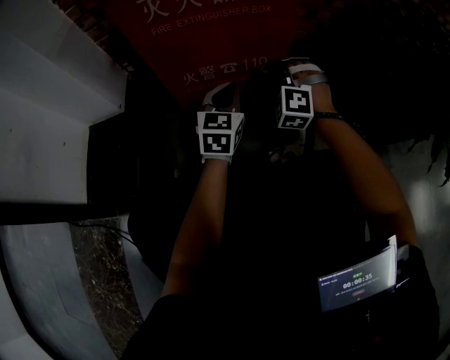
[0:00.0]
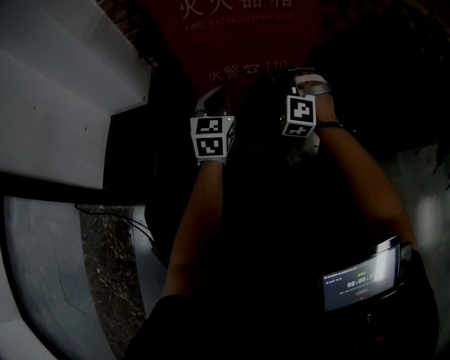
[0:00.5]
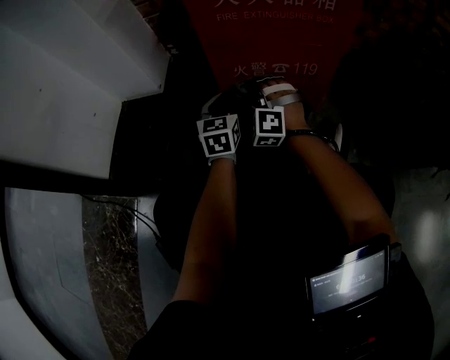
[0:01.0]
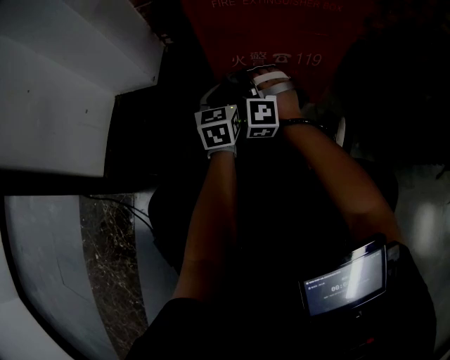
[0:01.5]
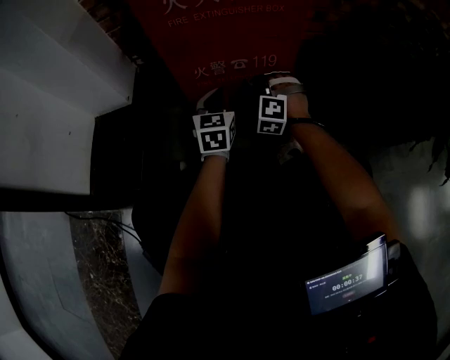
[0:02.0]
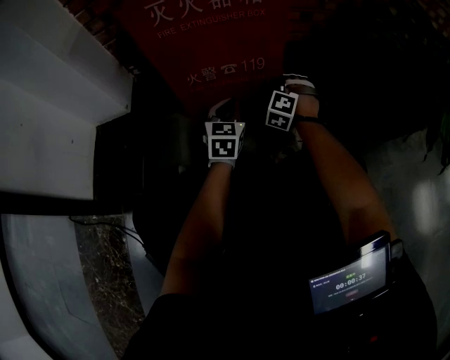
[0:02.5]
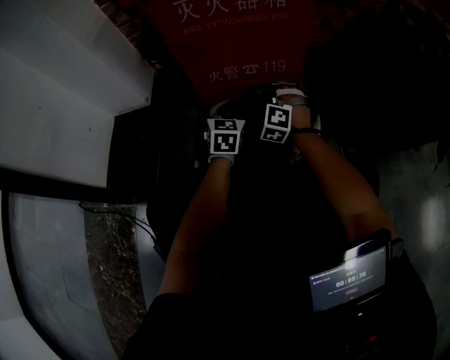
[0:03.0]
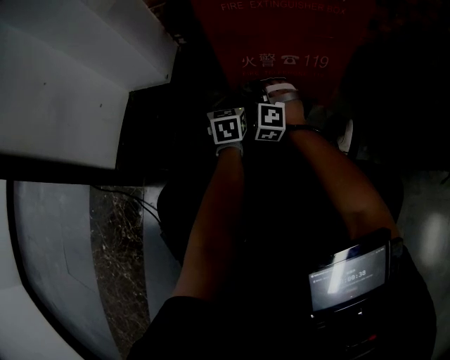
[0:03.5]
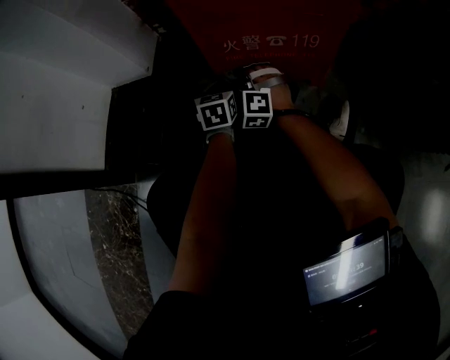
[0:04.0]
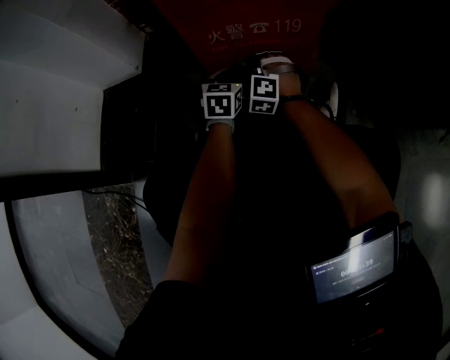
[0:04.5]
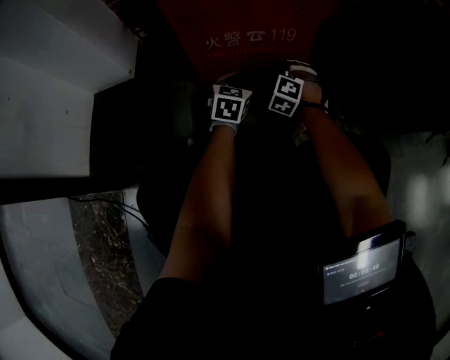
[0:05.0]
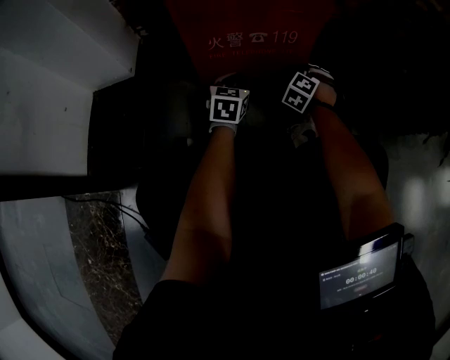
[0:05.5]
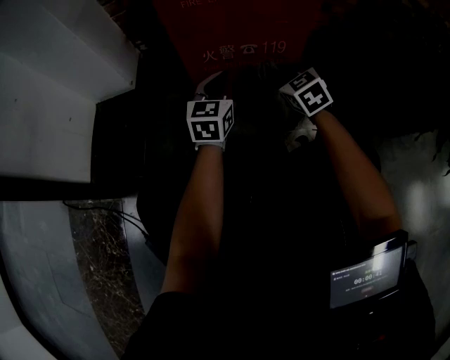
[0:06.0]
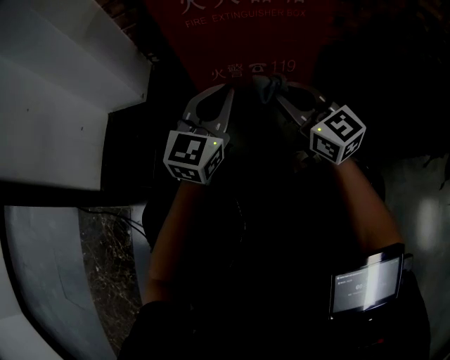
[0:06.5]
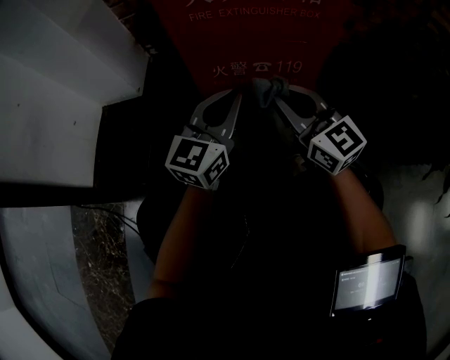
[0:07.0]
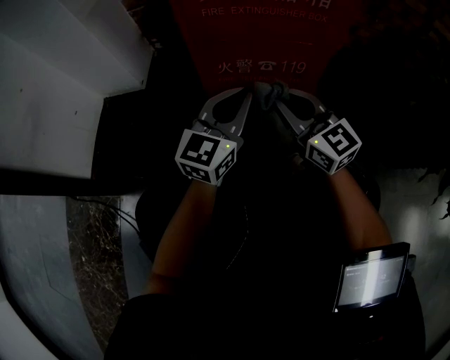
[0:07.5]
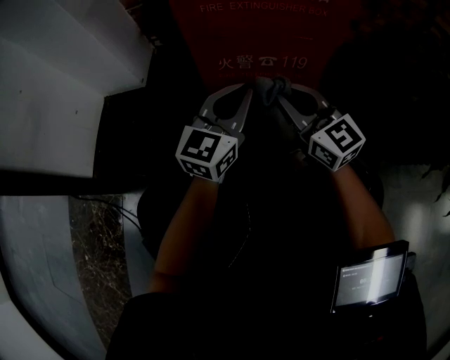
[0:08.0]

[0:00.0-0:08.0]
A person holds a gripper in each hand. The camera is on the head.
0:02.0 to 0:04.0: The left gripper changes place by roughly 15 cm.
0:04.0 to 0:06.0: The left gripper travels upward by roughly 15 cm, and rotates roughly 30 degrees.
0:06.0 to 0:08.0: The left gripper moves upward, about 10 cm.

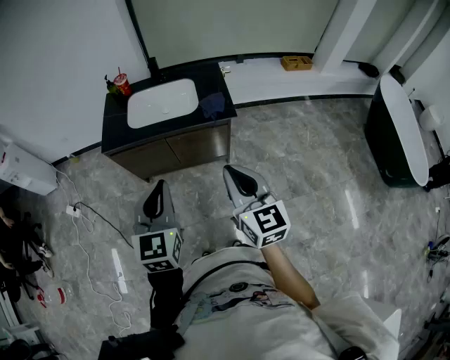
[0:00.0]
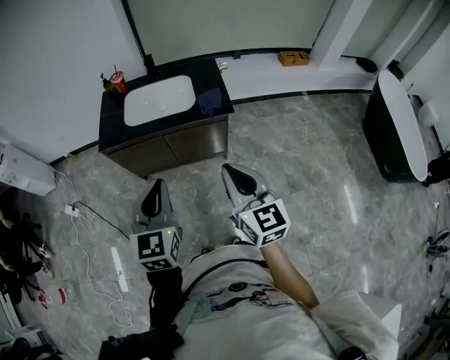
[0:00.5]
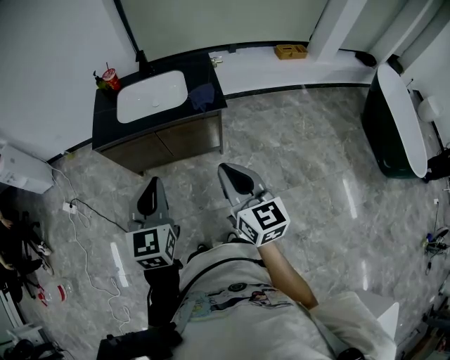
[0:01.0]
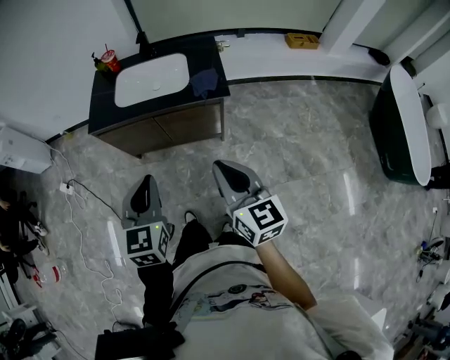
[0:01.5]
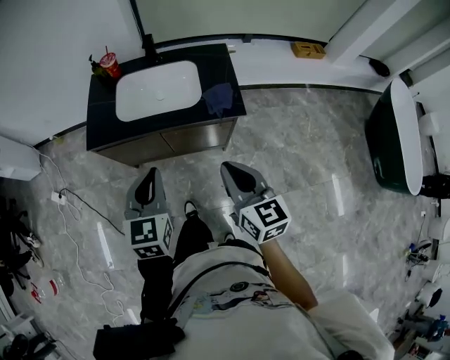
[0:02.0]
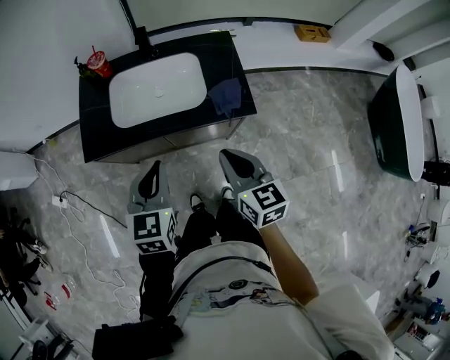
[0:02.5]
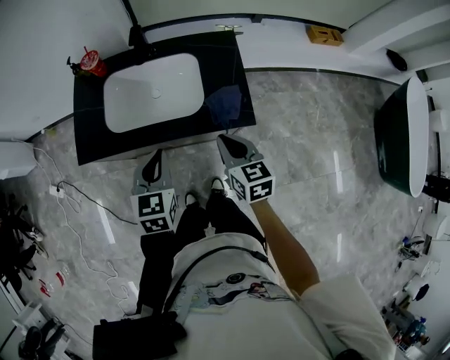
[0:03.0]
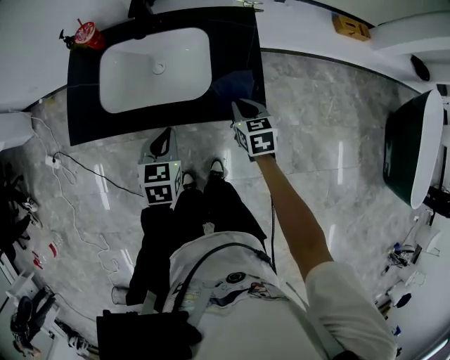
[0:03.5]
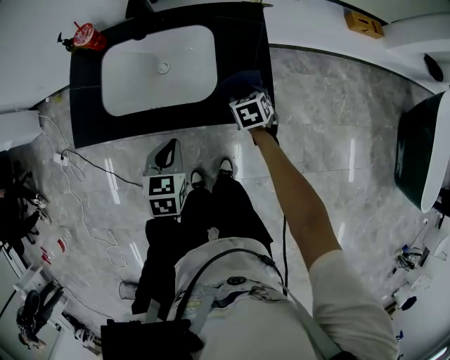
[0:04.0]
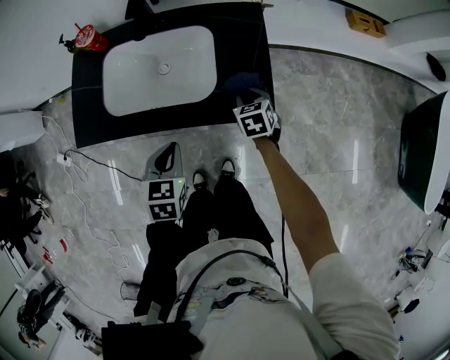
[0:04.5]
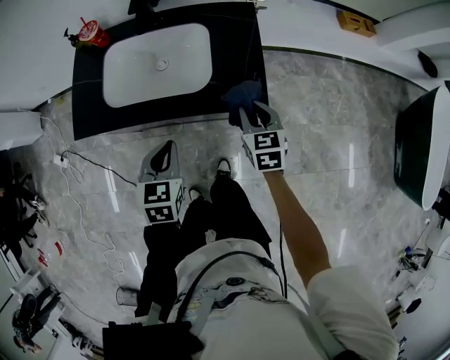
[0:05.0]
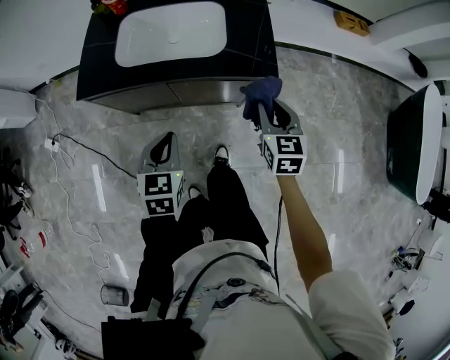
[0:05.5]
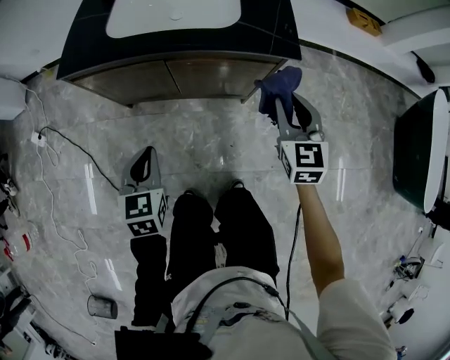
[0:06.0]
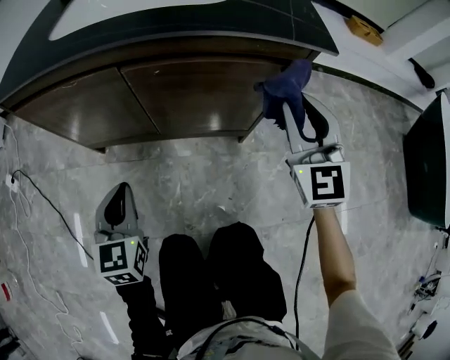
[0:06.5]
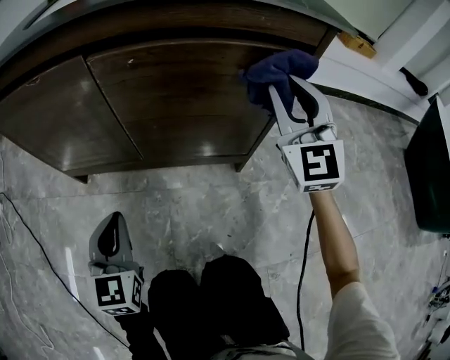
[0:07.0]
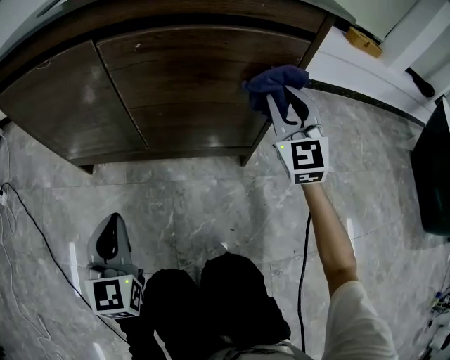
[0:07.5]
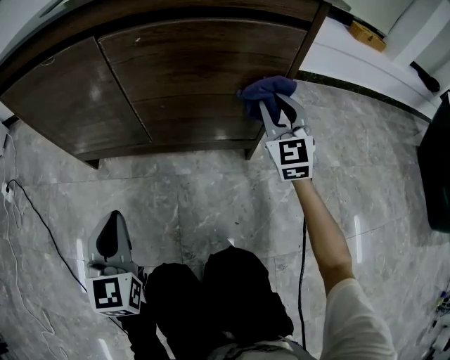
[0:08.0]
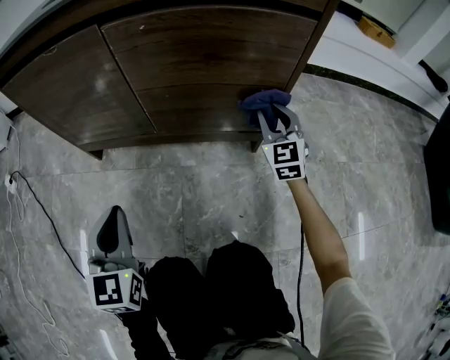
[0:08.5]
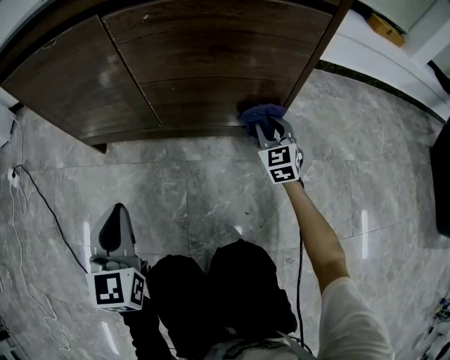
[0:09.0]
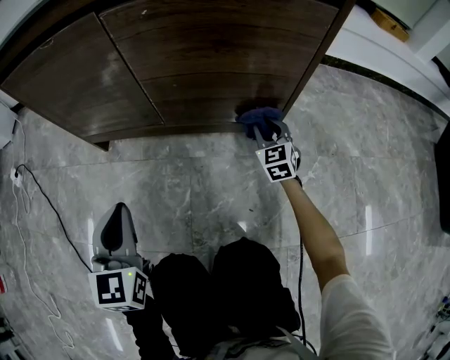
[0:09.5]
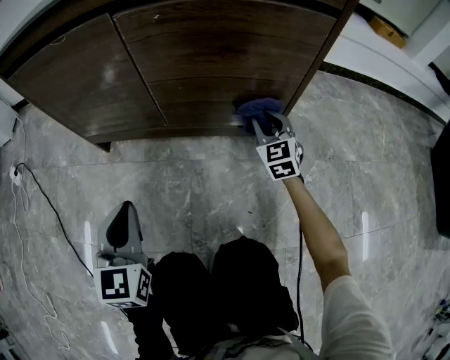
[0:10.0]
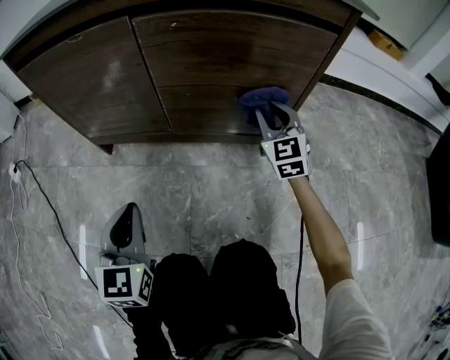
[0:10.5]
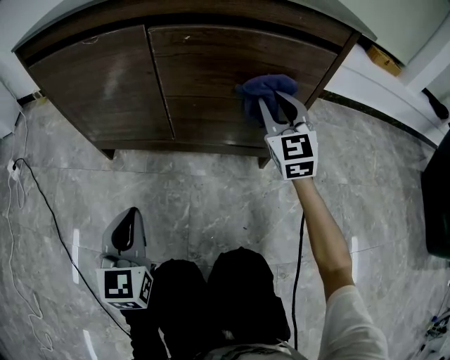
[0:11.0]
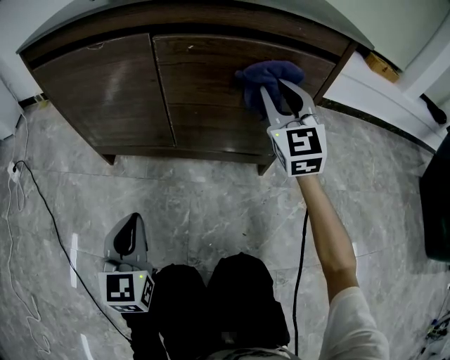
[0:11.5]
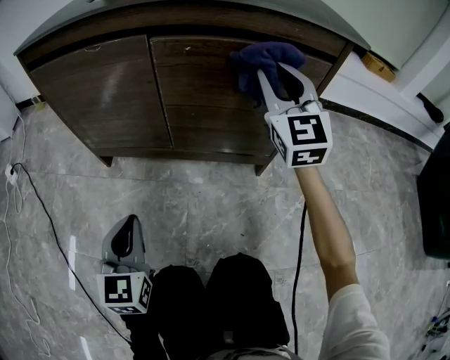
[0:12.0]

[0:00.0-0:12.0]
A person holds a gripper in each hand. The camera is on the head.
0:00.0 to 0:02.0: The two grippers go about 15 cm forward and downward.
0:02.0 to 0:04.0: The left gripper travels downward and forward by roughly 30 cm, and changes its angle by some 30 degrees, while the right gripper moves downward and forward, roughly 50 cm, points its fingers approximately 40 degrees further downward, and opens up.
0:04.0 to 0:06.0: The left gripper moves backward and to the left, approximately 25 cm. Meanwhile the right gripper moves backward and upward, roughly 25 cm, tilts its fingers some 40 degrees upward, and closes up.
0:06.0 to 0:08.0: Both grippers move downward, about 30 cm. The left gripper changes its angle by some 20 degrees. Meanwhile the right gripper changes its angle by about 20 degrees.
0:08.0 to 0:10.0: The right gripper is displaced downward by some 15 cm.
0:10.0 to 0:12.0: The right gripper is displaced upward by about 30 cm, and turns by about 30 degrees.

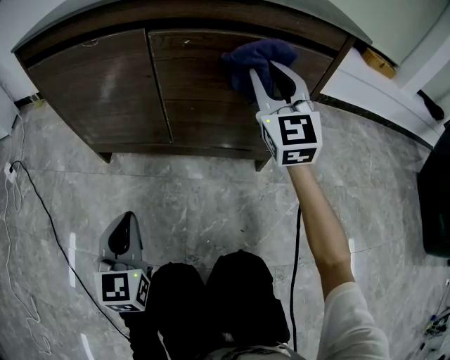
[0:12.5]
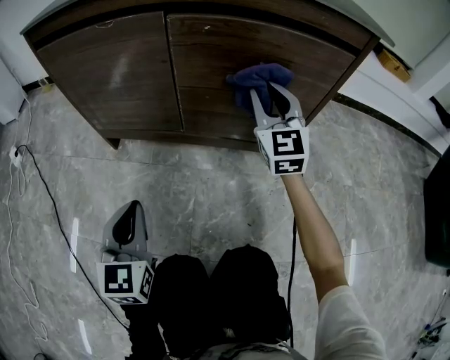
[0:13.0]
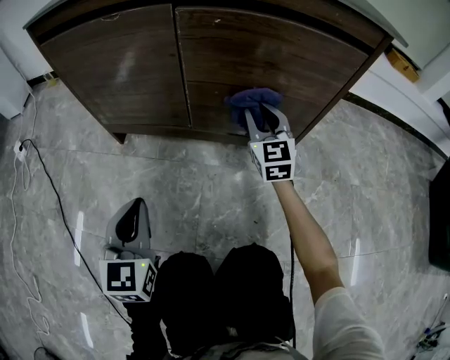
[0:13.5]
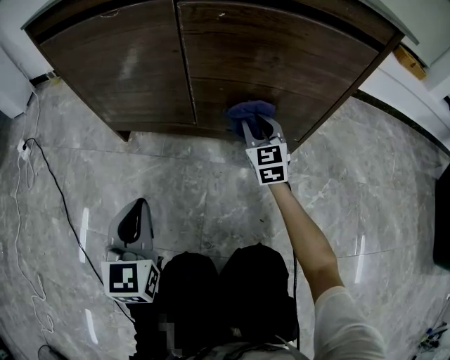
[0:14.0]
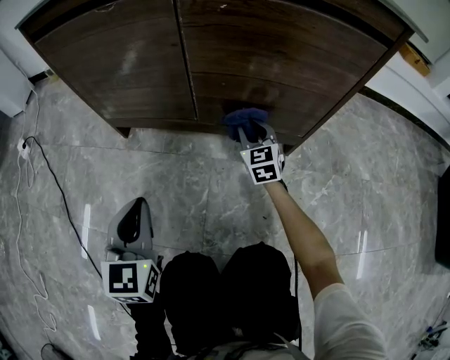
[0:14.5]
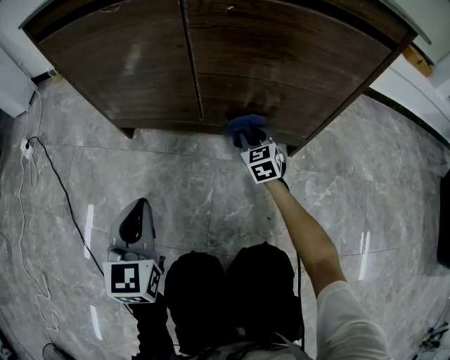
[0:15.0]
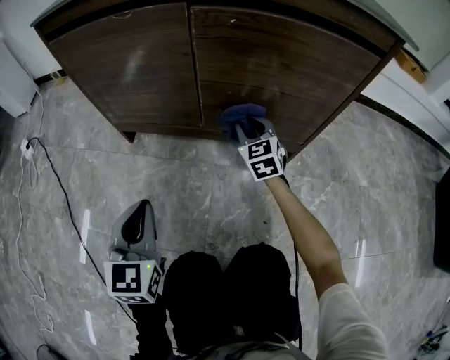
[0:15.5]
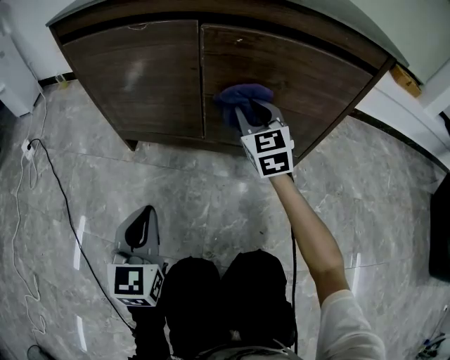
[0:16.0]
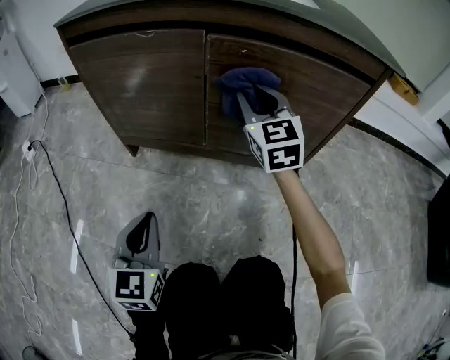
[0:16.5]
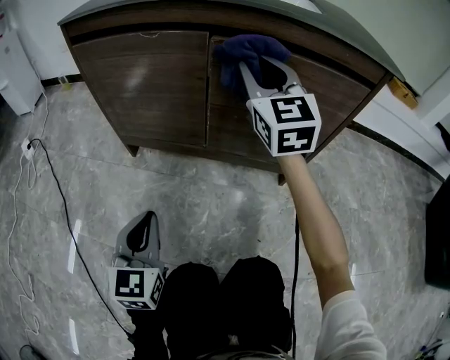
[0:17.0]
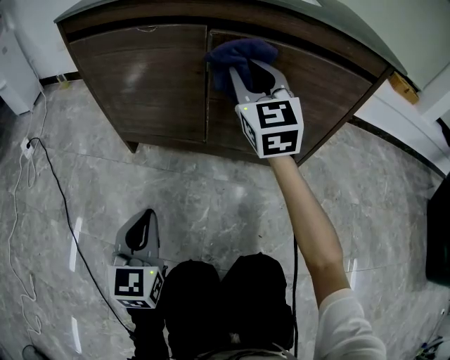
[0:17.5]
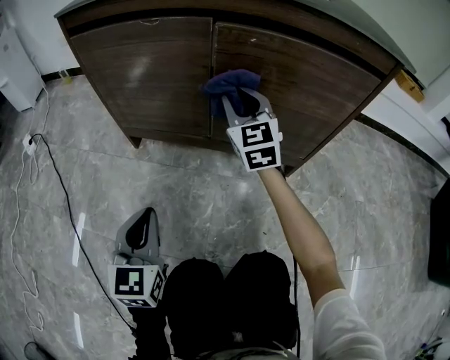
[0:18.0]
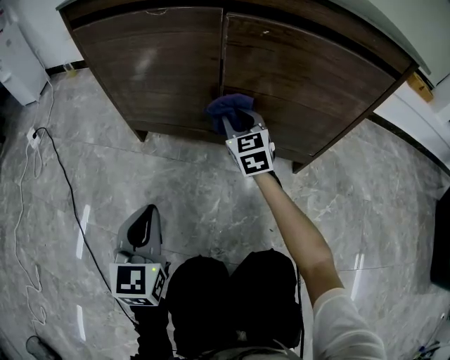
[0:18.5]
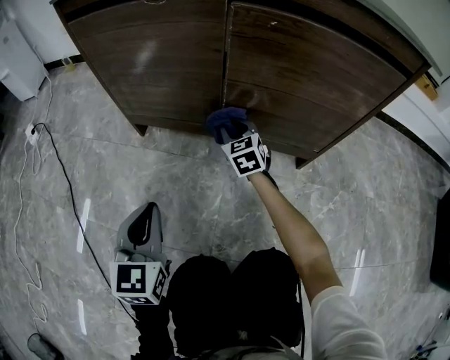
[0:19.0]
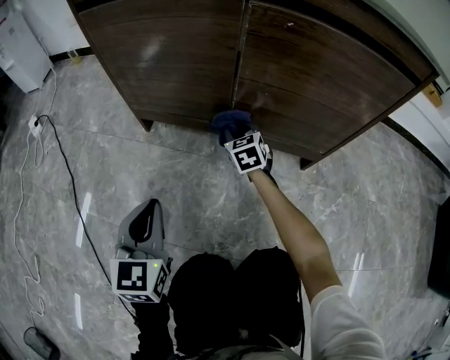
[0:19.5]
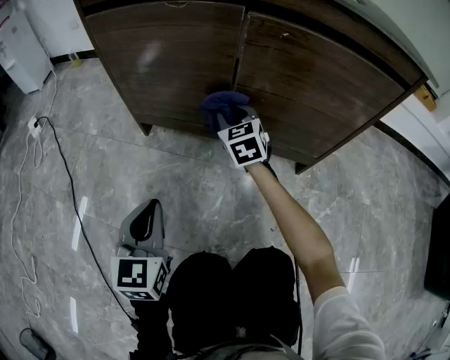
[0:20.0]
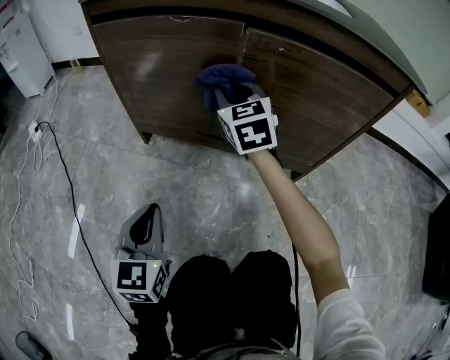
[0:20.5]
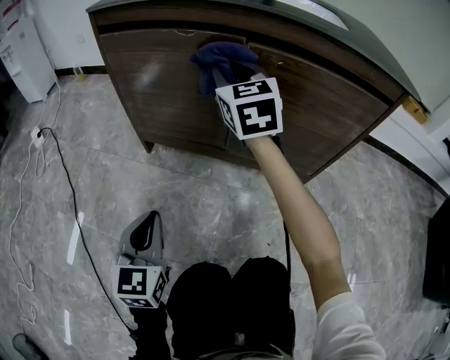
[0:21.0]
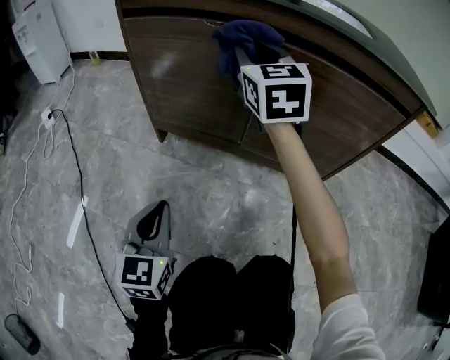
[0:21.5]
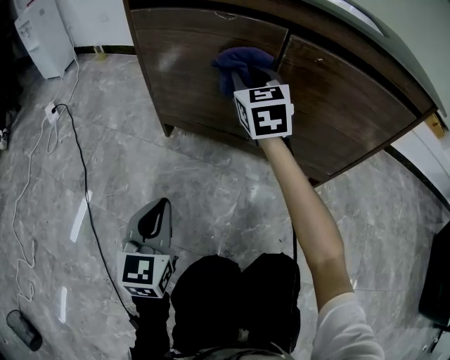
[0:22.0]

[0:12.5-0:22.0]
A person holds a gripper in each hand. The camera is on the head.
0:12.5 to 0:14.5: The right gripper is displaced downward by about 35 cm, and turns by some 30 degrees.
0:14.5 to 0:16.5: The right gripper is displaced upward by some 25 cm.
0:16.5 to 0:18.0: The right gripper moves downward, approximately 5 cm.
0:18.0 to 0:20.0: The right gripper heads downward and to the left, covering approximately 15 cm.
0:20.0 to 0:22.0: The right gripper is displaced upward by approximately 15 cm.
